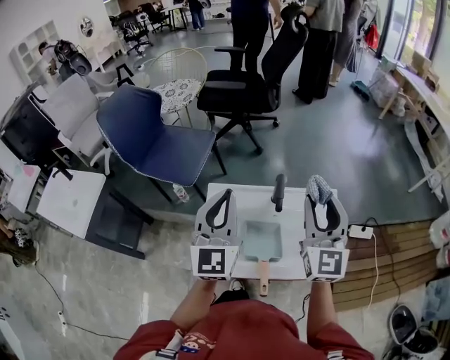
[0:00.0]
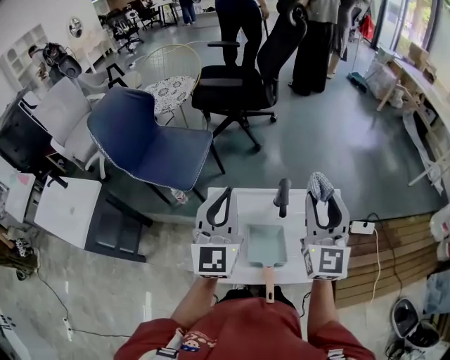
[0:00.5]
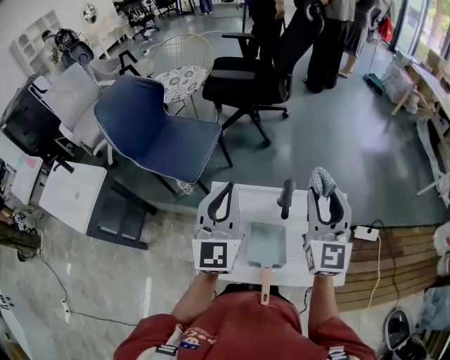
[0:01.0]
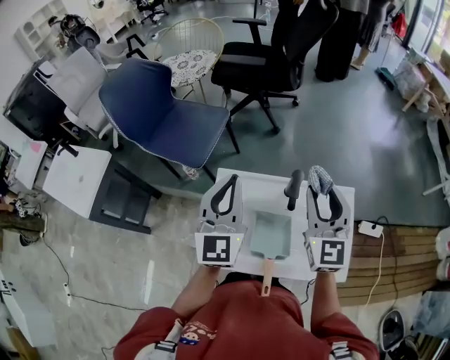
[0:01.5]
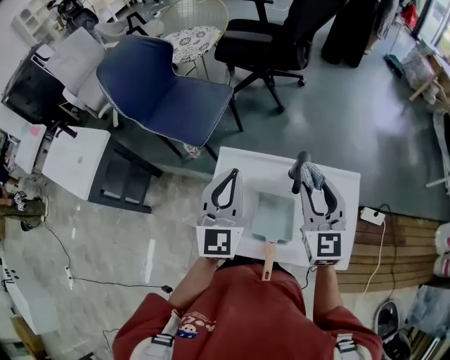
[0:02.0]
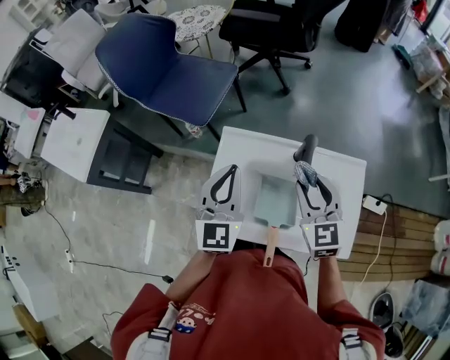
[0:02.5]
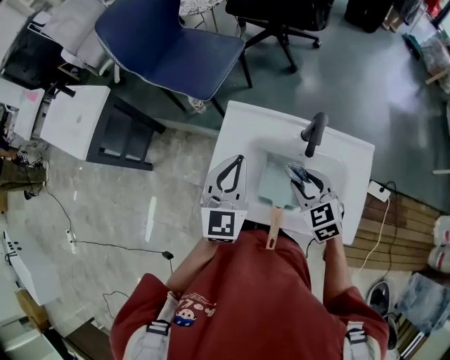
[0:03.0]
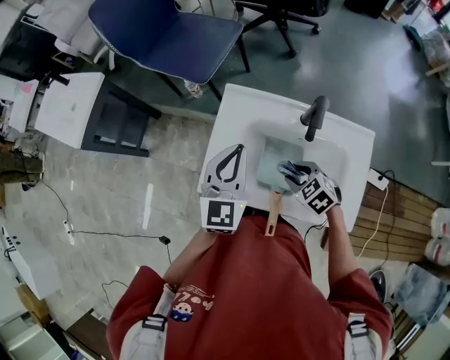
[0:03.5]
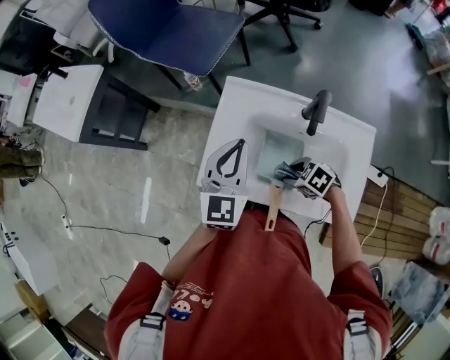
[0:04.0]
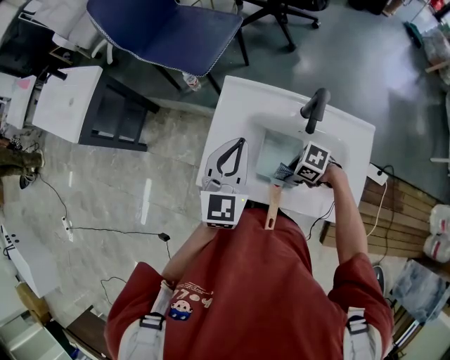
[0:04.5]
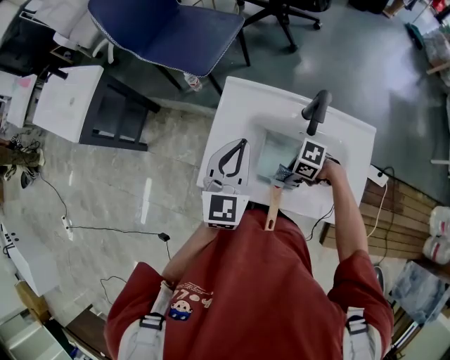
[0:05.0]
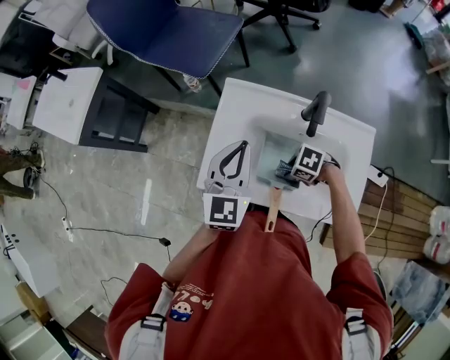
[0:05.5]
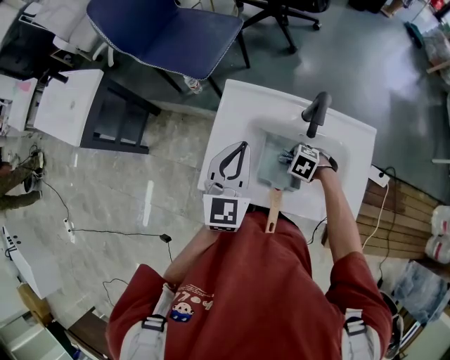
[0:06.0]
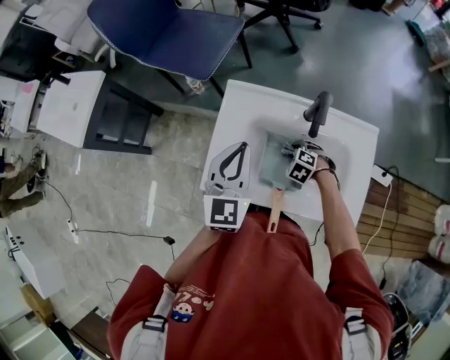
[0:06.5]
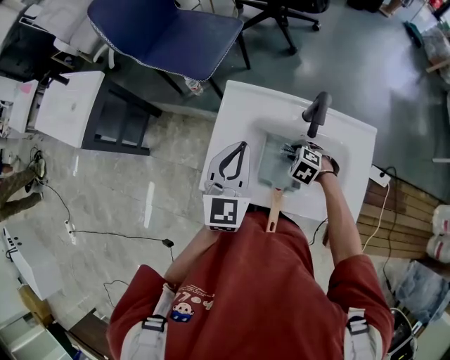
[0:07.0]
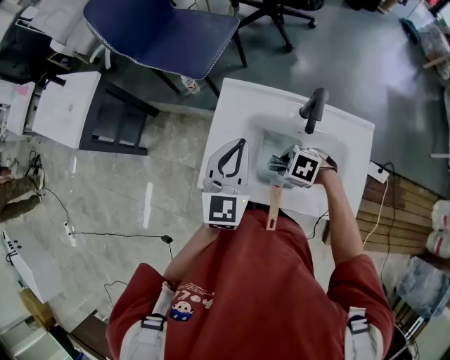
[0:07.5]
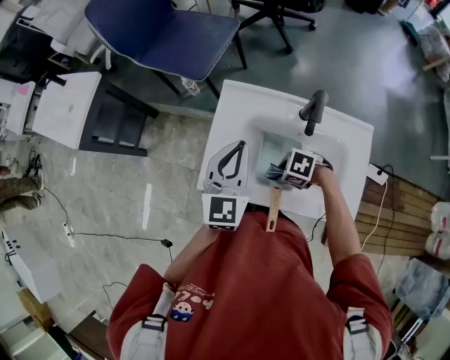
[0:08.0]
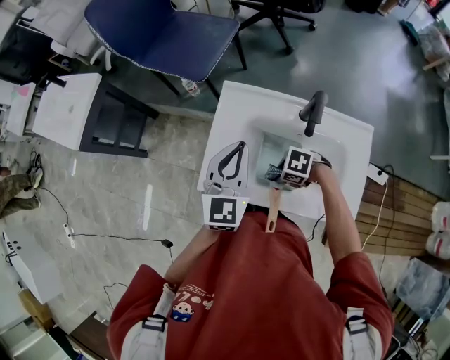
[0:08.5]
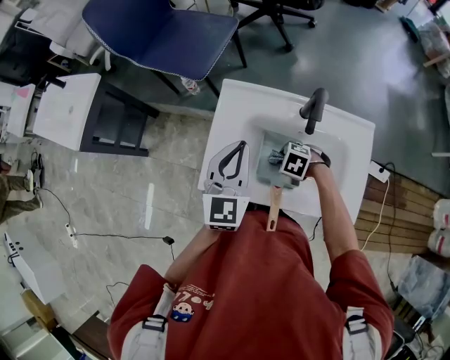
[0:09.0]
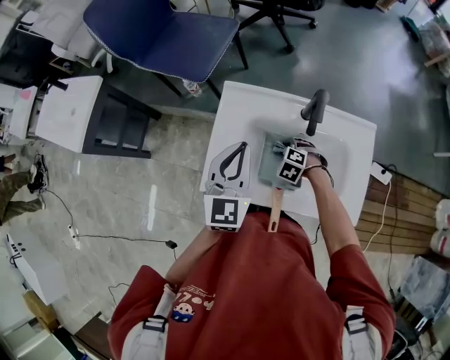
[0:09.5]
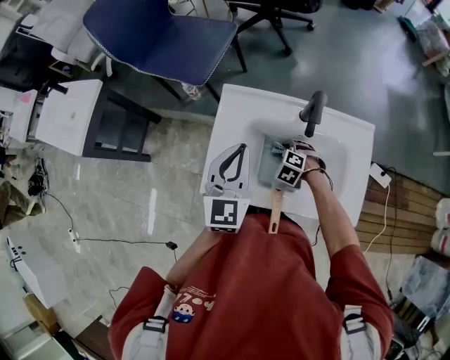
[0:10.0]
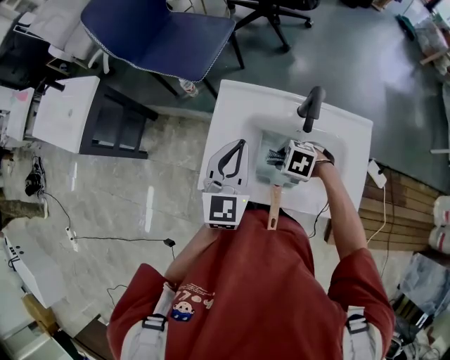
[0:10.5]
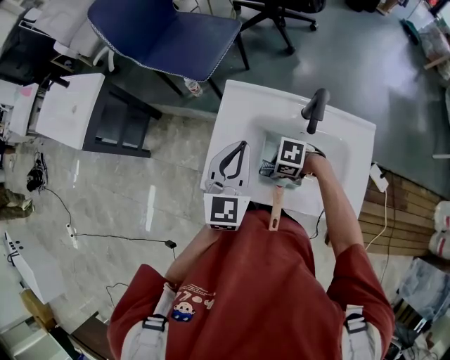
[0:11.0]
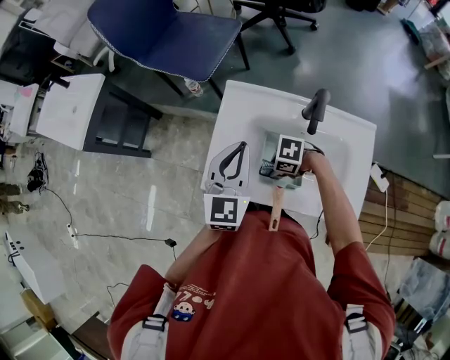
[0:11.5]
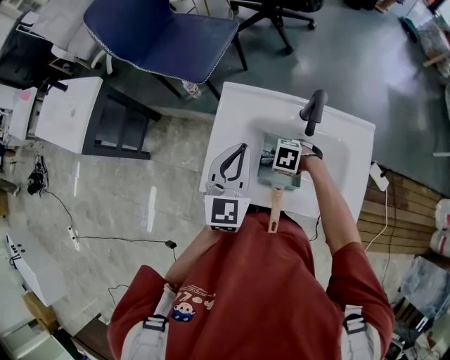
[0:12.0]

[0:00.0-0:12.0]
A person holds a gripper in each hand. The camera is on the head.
0:00.0 to 0:02.0: The two grippers go roughly 10 cm downward and forward. The right gripper rotates about 20 degrees.
0:02.0 to 0:04.0: The right gripper travels downward by some 30 cm, and angles its fingers downward, by roughly 50 degrees; the left gripper moves downward, roughly 10 cm.
0:04.0 to 0:06.0: The right gripper ends up roughly 10 cm from where it was.
0:06.0 to 0:08.0: The right gripper moves approximately 10 cm.
0:08.0 to 0:10.0: The right gripper shifts by approximately 10 cm, and changes its angle by about 40 degrees.
0:10.0 to 0:12.0: The right gripper rotates about 30 degrees.

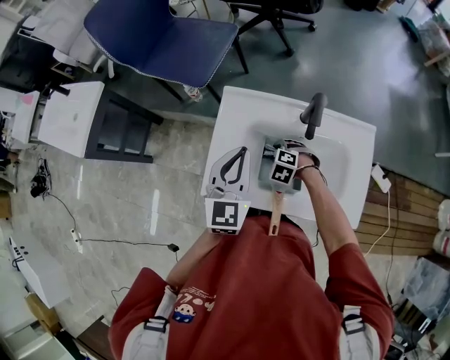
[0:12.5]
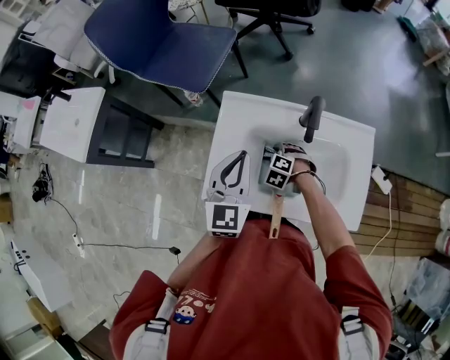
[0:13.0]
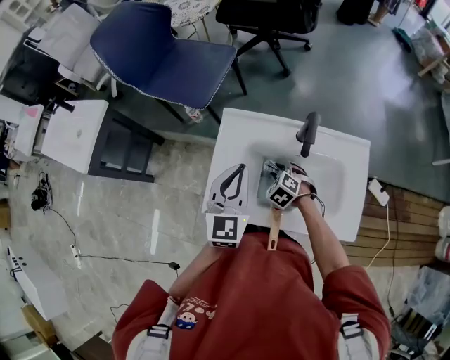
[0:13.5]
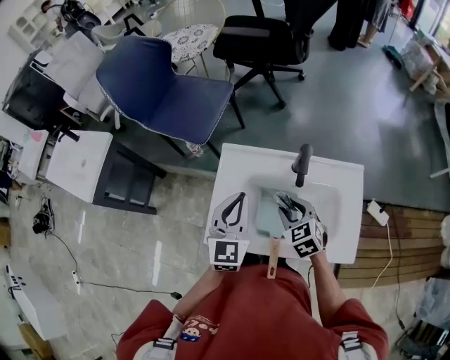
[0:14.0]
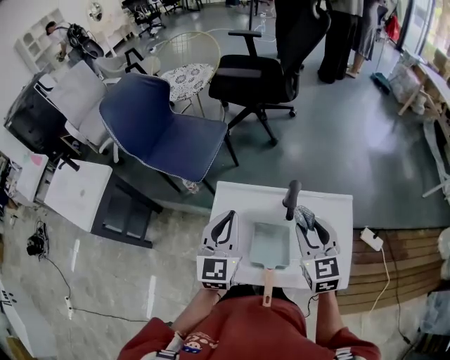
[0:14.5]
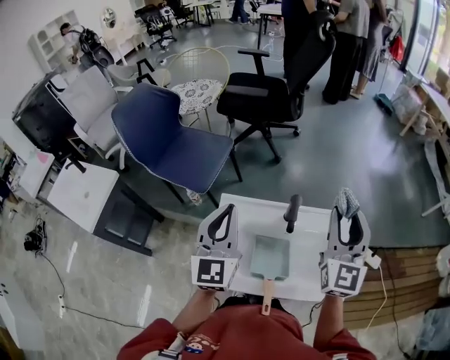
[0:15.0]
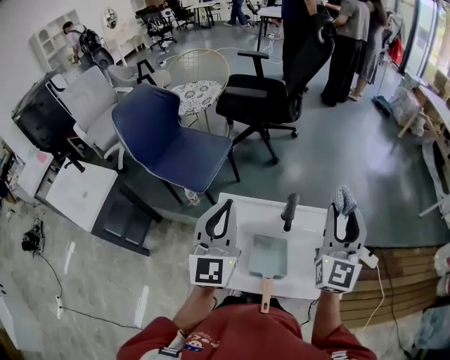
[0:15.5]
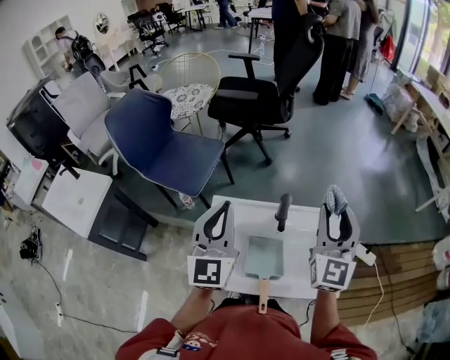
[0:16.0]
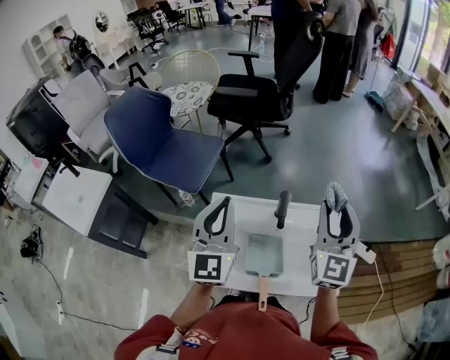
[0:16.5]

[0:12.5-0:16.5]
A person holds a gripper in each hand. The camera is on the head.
0:12.5 to 0:14.5: The right gripper goes roughly 35 cm upward, and points its fingers approximately 50 degrees further upward, while the left gripper travels upward by roughly 10 cm.
0:14.5 to 0:16.5: The right gripper is displaced upward and to the right by some 15 cm, and turns by approximately 30 degrees, while the left gripper goes roughly 10 cm upward.

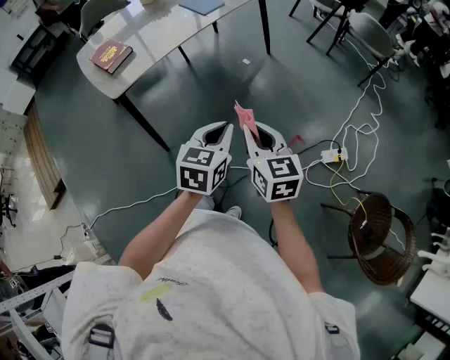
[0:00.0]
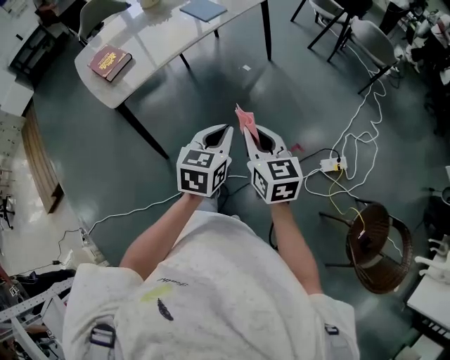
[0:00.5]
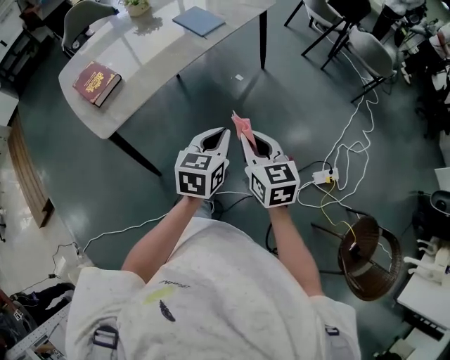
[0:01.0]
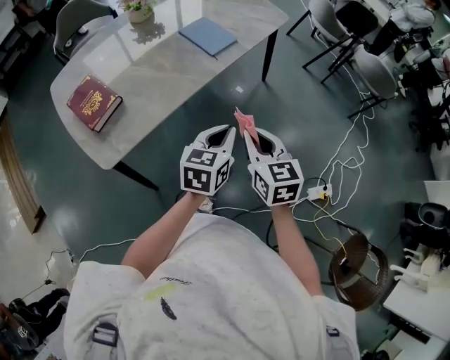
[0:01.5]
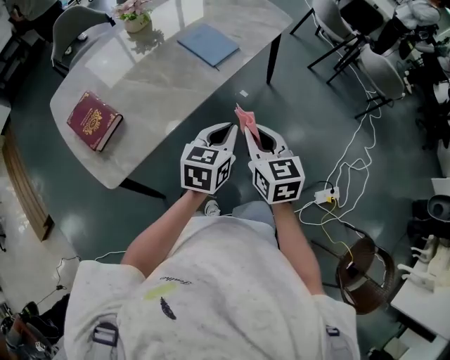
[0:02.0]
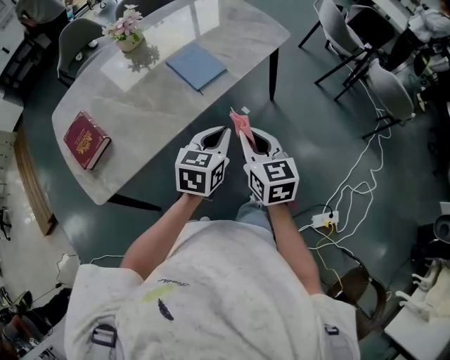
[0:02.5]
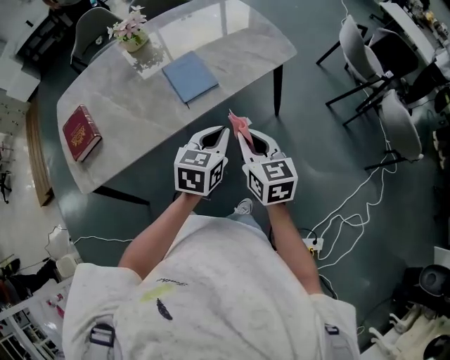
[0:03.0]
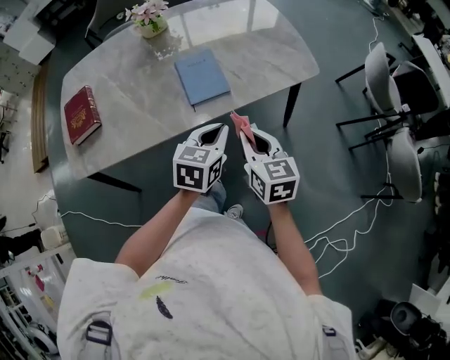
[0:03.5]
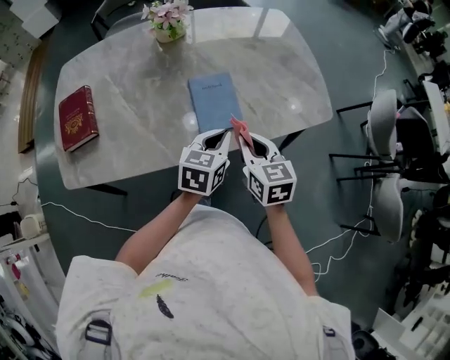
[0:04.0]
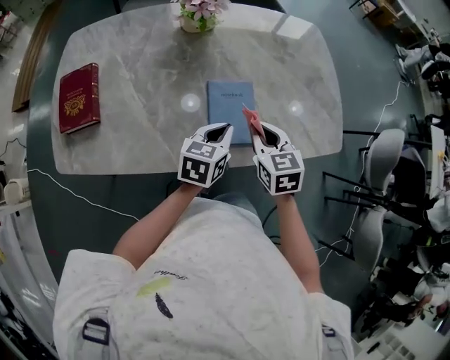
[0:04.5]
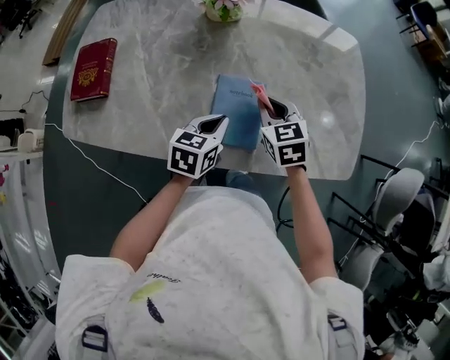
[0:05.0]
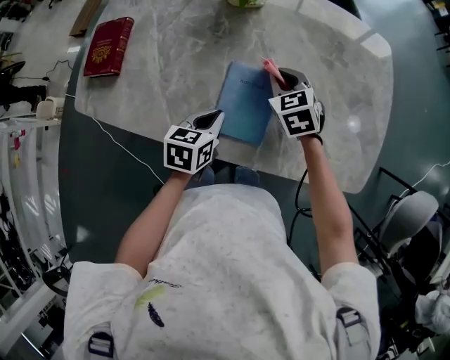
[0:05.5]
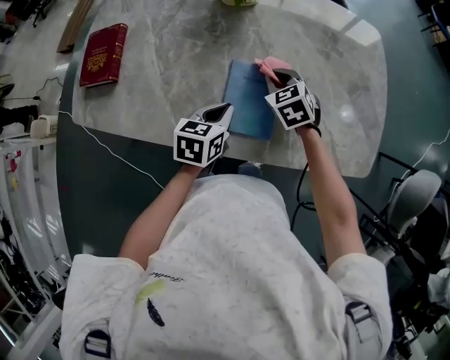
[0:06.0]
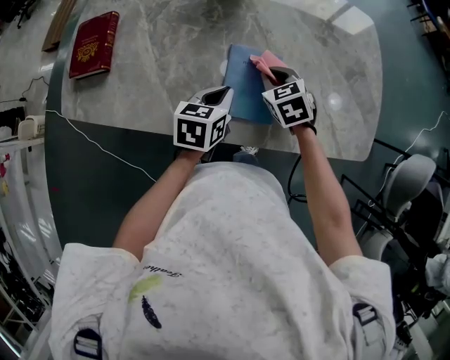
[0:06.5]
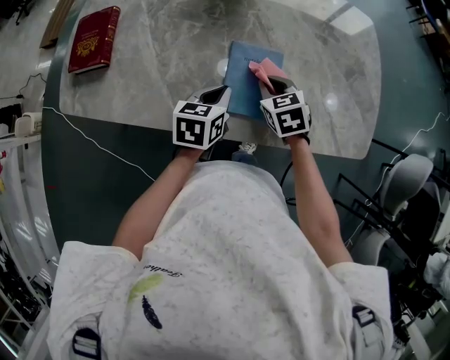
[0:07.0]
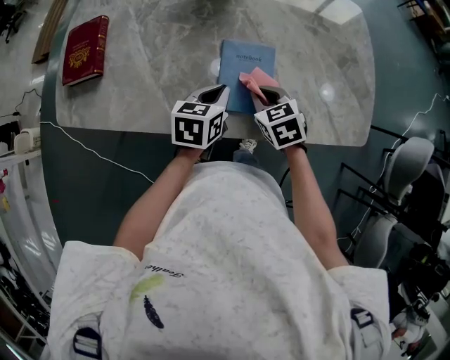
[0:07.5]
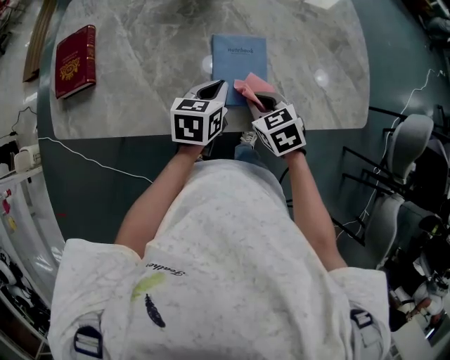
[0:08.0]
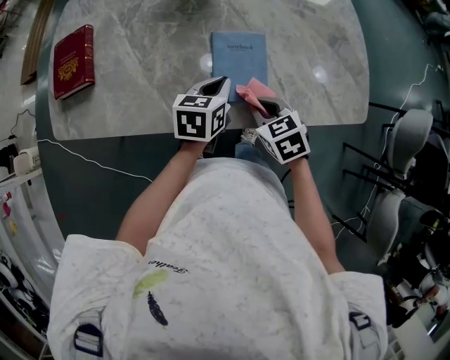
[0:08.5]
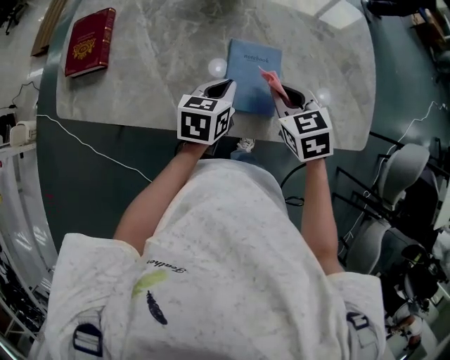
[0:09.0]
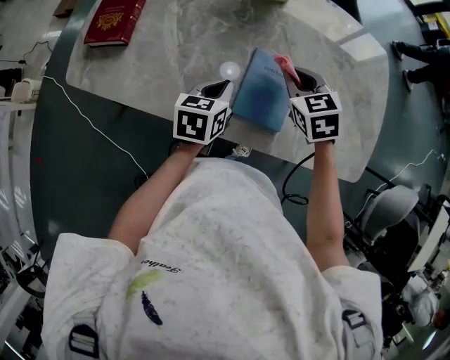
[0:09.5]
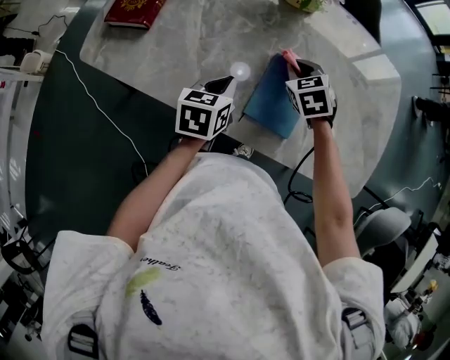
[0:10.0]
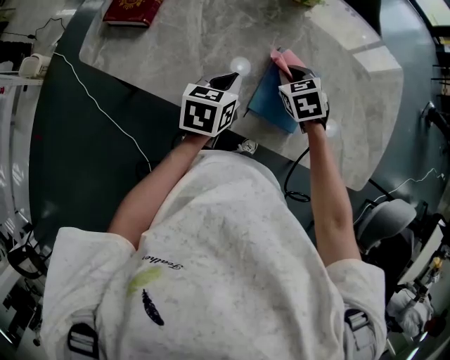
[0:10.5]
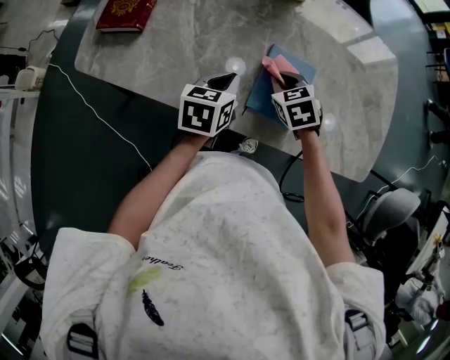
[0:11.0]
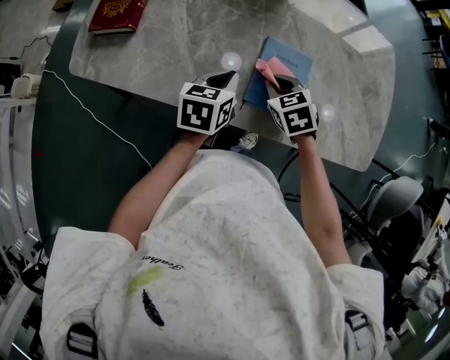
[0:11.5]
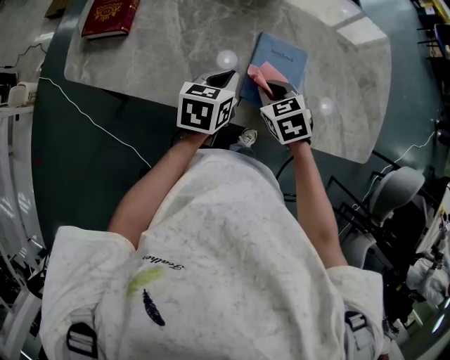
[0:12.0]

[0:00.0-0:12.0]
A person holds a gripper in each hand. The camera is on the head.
0:00.0 to 0:02.0: The pair of grippers is taken forward, roughly 40 cm.
0:02.0 to 0:04.0: The left gripper changes place by some 30 cm, and swivels approximately 30 degrees. Meanwhile the right gripper moves some 35 cm, and rotates roughly 30 degrees.
0:04.0 to 0:06.0: The left gripper changes place by about 15 cm, and rotates roughly 30 degrees; the right gripper ends up approximately 25 cm from where it was, and changes its angle by some 50 degrees.
0:06.0 to 0:08.0: The right gripper shifts about 15 cm backward.
0:08.0 to 0:10.0: The right gripper moves forward, approximately 15 cm, and rotates some 20 degrees. The left gripper travels to the left by about 10 cm, and rotates about 20 degrees.
0:10.0 to 0:12.0: The right gripper shifts roughly 15 cm backward.
